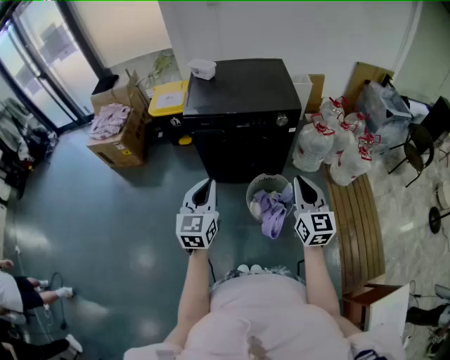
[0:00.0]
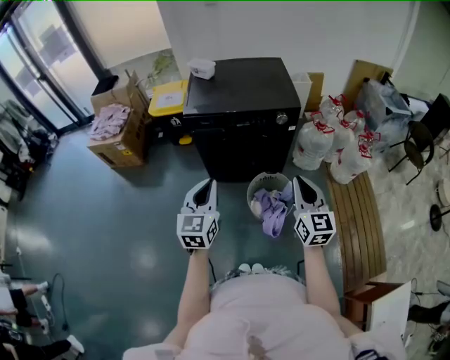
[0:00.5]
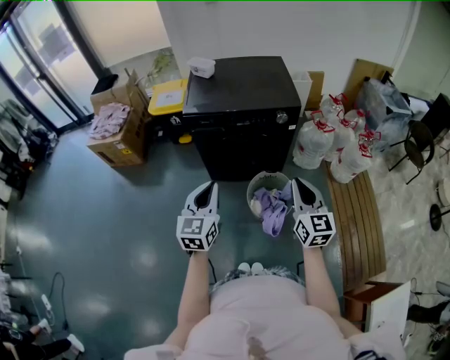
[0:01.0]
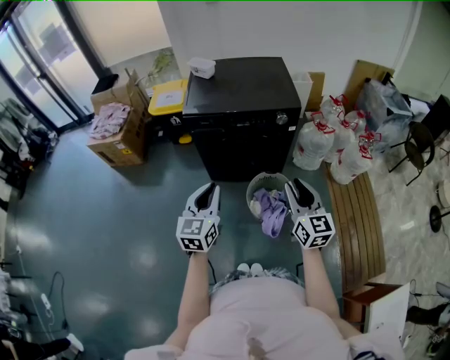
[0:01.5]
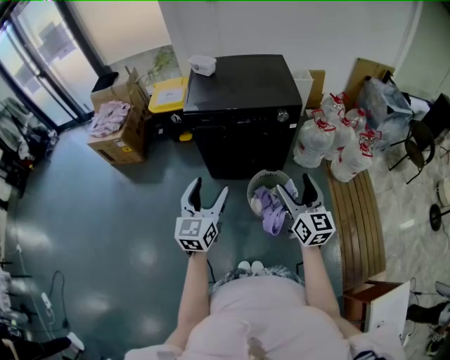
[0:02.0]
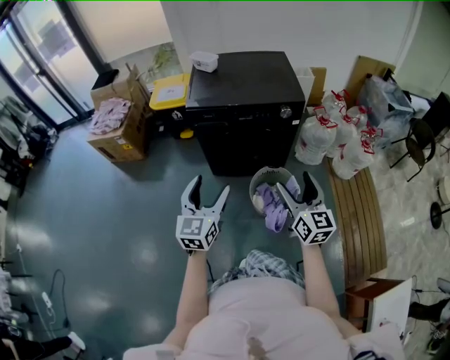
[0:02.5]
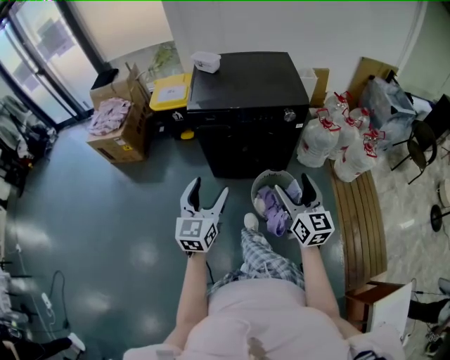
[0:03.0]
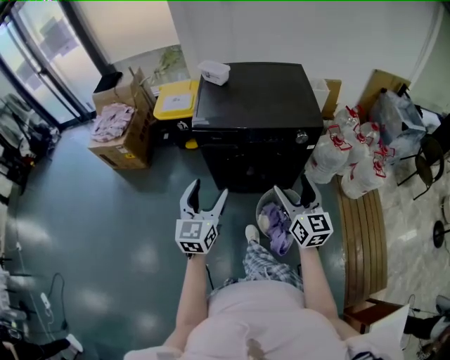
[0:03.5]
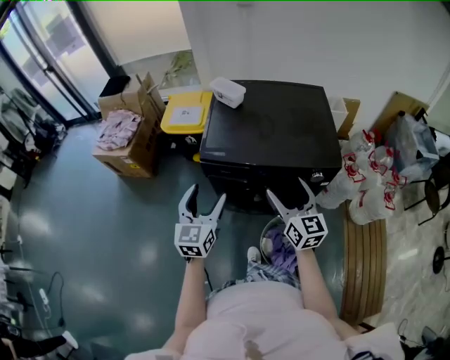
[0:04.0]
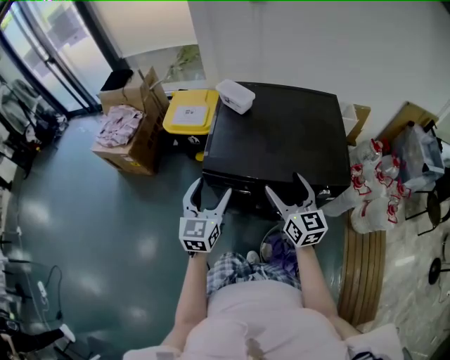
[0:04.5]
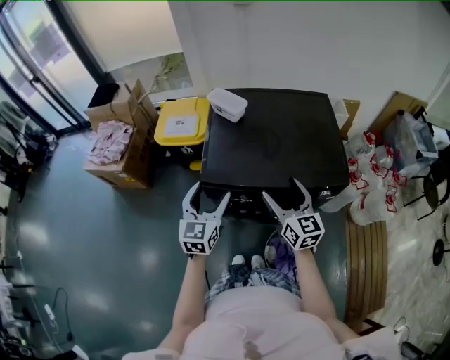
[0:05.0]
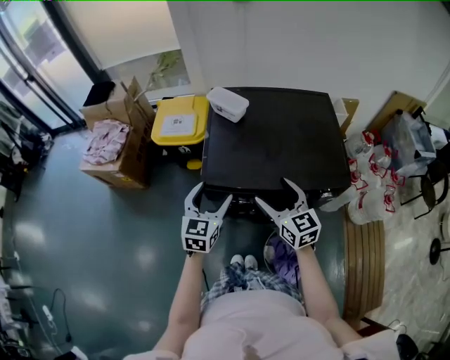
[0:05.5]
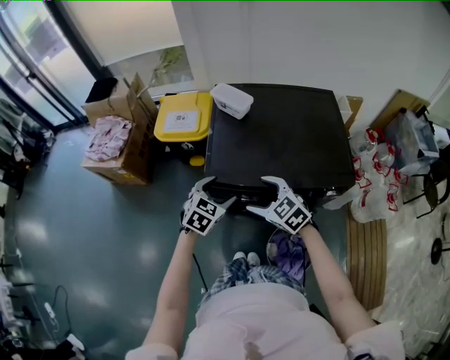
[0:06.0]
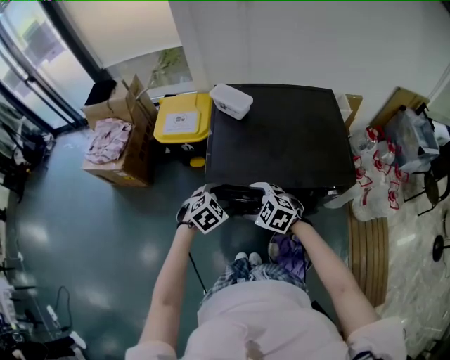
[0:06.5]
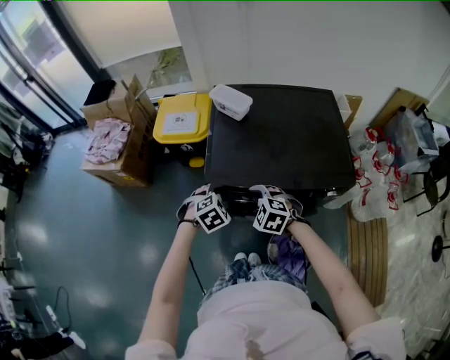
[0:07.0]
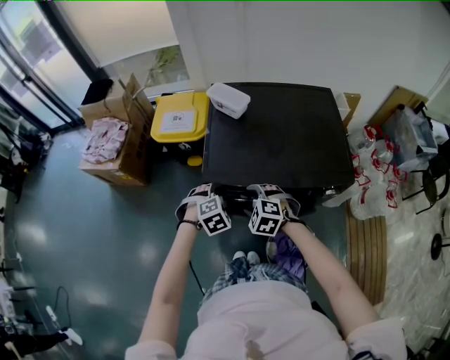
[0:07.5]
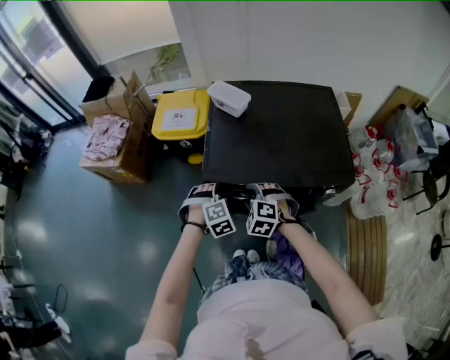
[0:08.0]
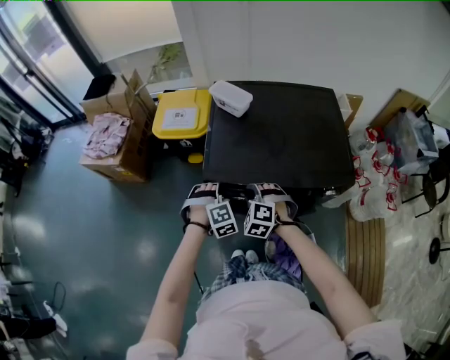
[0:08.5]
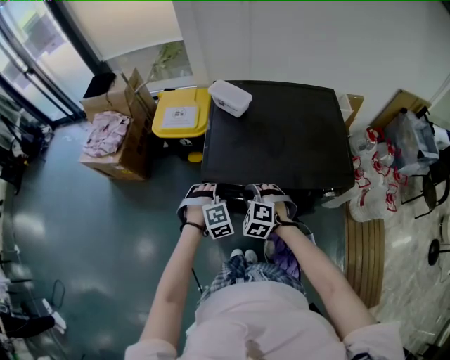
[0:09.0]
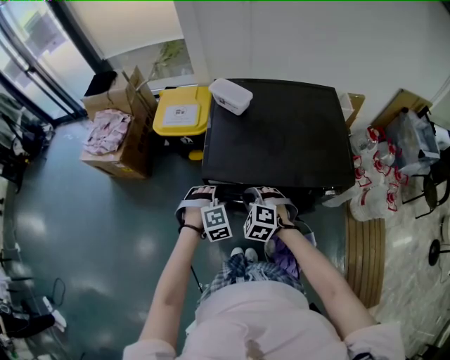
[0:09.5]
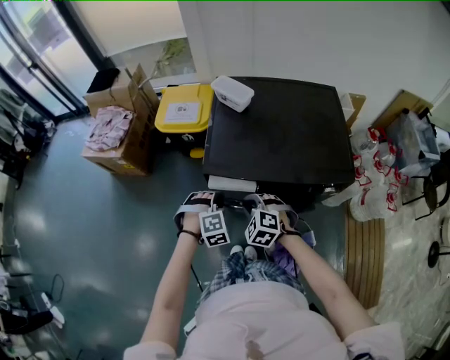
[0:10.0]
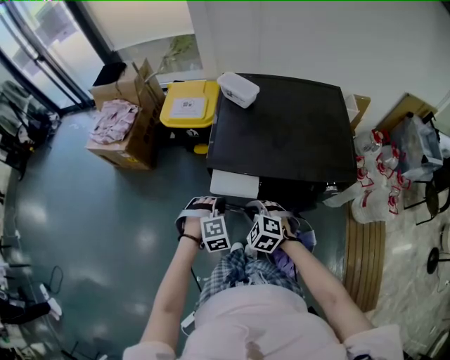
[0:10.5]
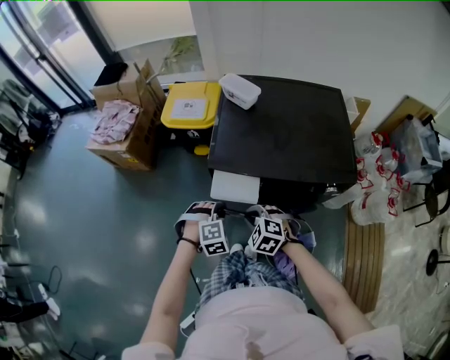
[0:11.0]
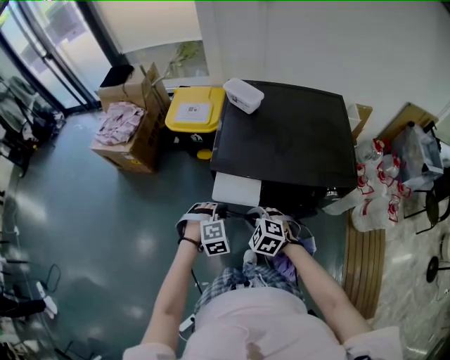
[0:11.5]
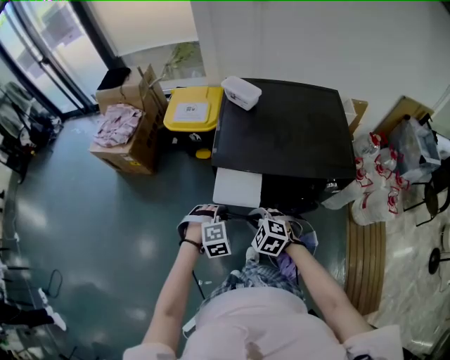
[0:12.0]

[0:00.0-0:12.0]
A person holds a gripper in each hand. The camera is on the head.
0:00.0 to 0:02.0: The left gripper opens its fingers. Meanwhile the right gripper opens its fingers.
0:02.0 to 0:04.0: The grippers both shift forward by some 30 cm.
0:04.0 to 0:06.0: The left gripper moves forward and downward, roughly 20 cm, and points its fingers roughly 30 degrees further downward. Meanwhile the right gripper heads to the left, forward and downward, covering approximately 20 cm, and tips its fingers downward by approximately 30 degrees.
0:06.0 to 0:08.0: The grippers both shift downward by some 5 cm. The right gripper turns by approximately 40 degrees, and closes its fingers, while the left gripper changes its angle by about 50 degrees, and closes up.
0:08.0 to 0:10.0: The left gripper ends up about 5 cm from where it was, and closes, while the right gripper goes approximately 5 cm backward.
0:10.0 to 0:12.0: Both grippers travel together backward, roughly 10 cm.

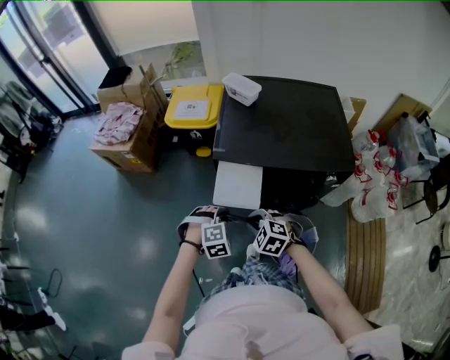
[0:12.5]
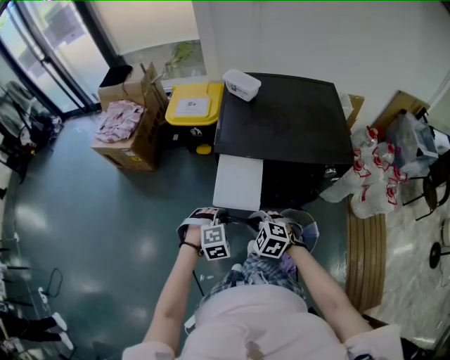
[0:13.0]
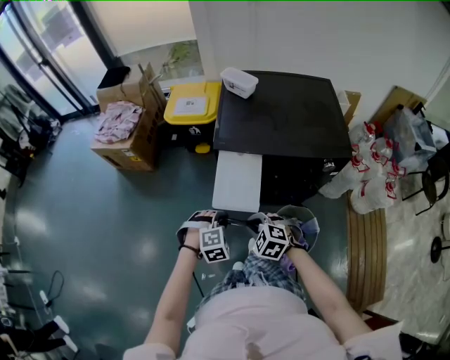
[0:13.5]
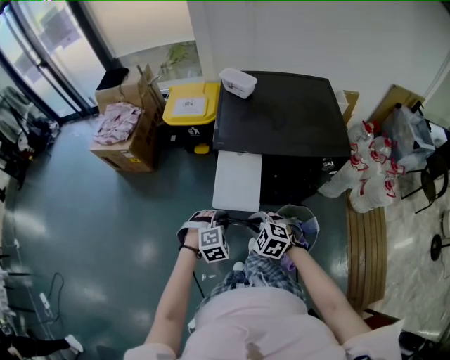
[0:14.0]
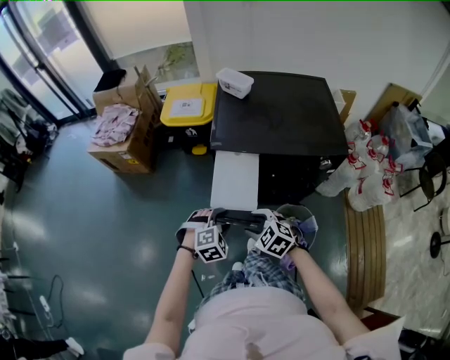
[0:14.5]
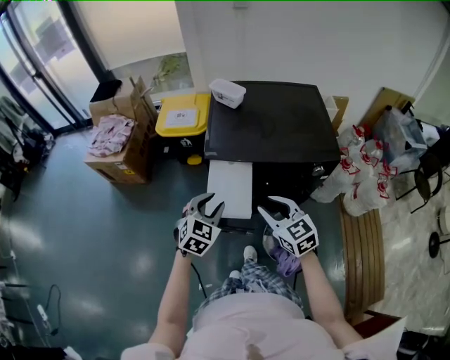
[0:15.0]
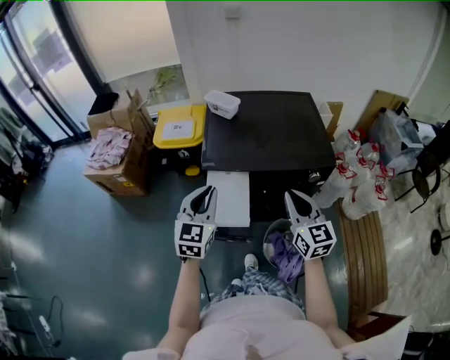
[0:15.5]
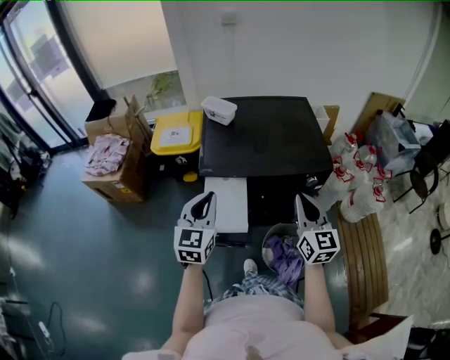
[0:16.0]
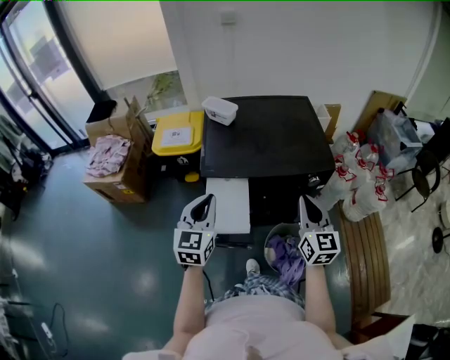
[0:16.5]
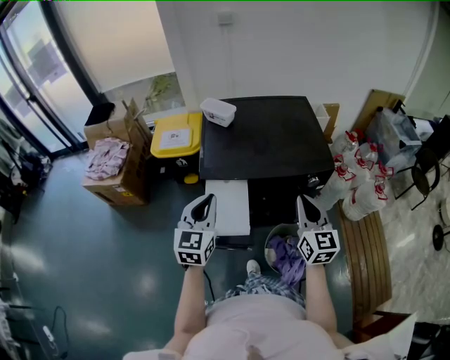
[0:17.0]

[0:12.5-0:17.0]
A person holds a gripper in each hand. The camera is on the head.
0:12.5 to 0:14.5: The grippers both shift backward by some 5 cm. The left gripper opens up. The right gripper opens its fingers.
0:14.5 to 0:17.0: The left gripper moves upward and forward, approximately 25 cm, angles its fingers upward, by about 50 degrees, and closes its fingers. Meanwhile the right gripper shifts roughly 30 cm upward, to the right and forward, tilts its fingers roughly 40 degrees upward, and closes up.

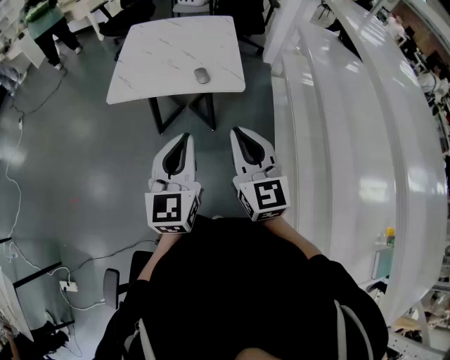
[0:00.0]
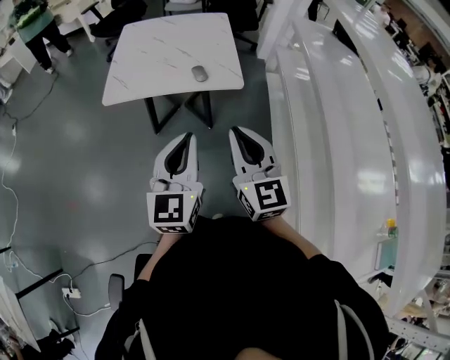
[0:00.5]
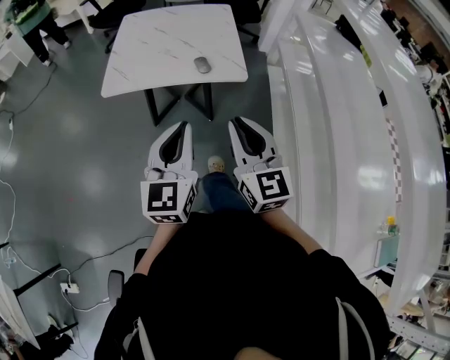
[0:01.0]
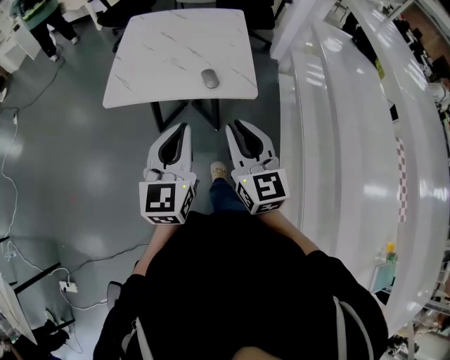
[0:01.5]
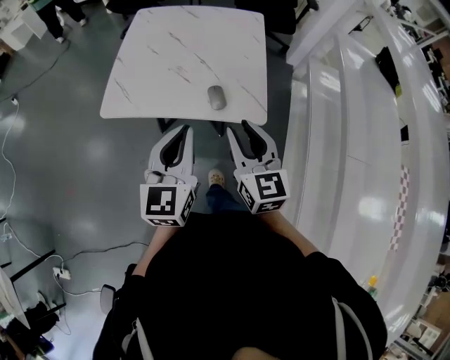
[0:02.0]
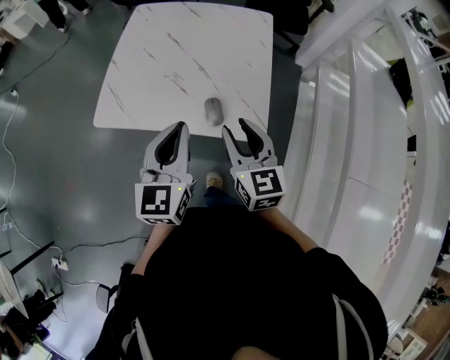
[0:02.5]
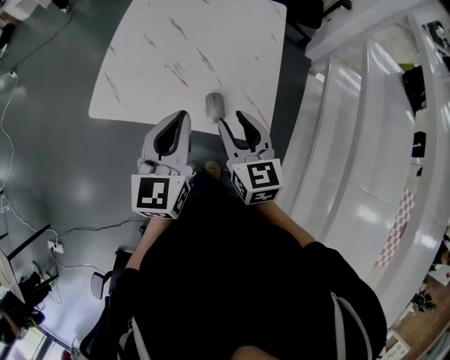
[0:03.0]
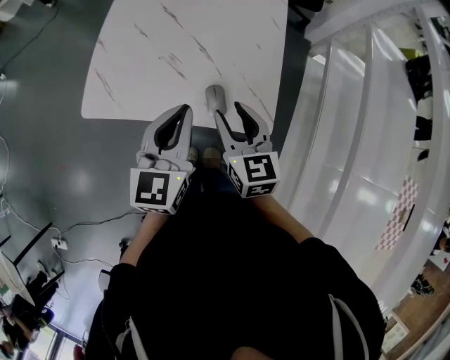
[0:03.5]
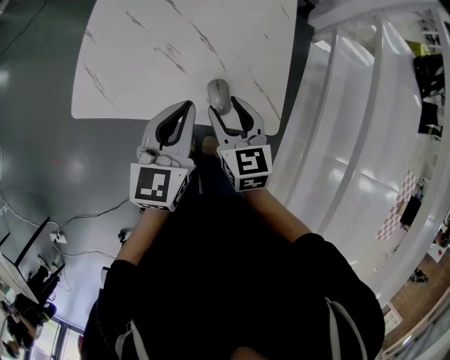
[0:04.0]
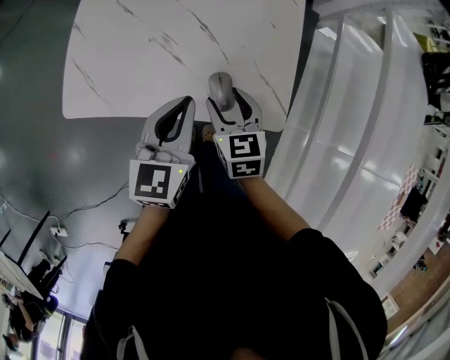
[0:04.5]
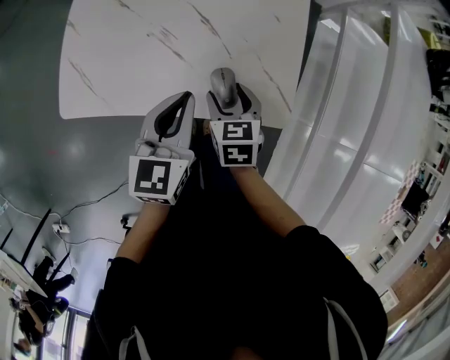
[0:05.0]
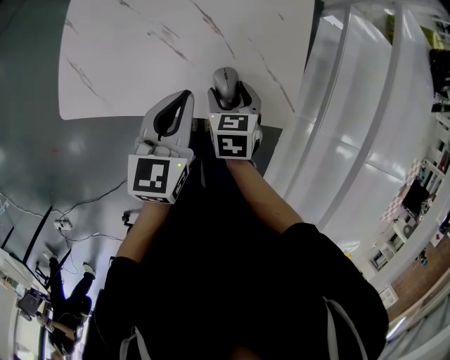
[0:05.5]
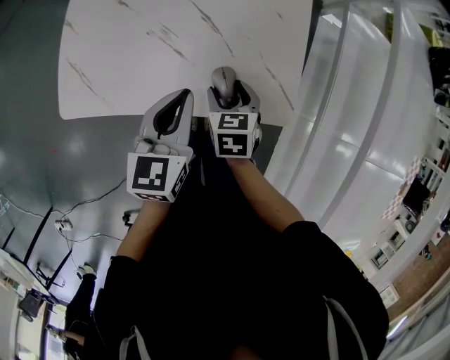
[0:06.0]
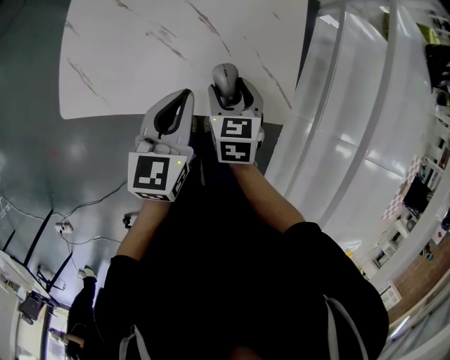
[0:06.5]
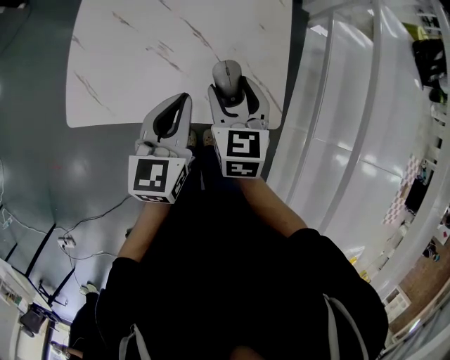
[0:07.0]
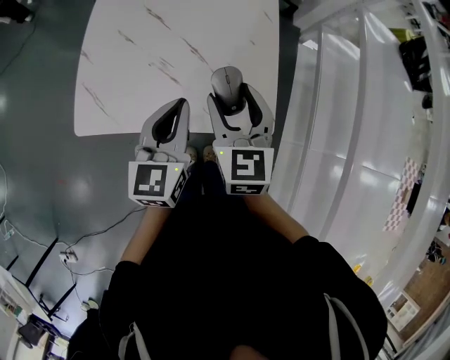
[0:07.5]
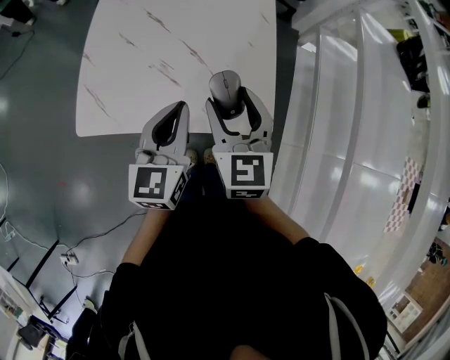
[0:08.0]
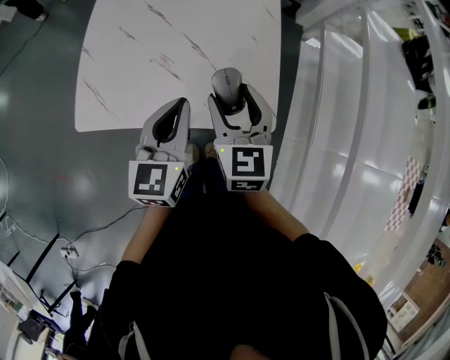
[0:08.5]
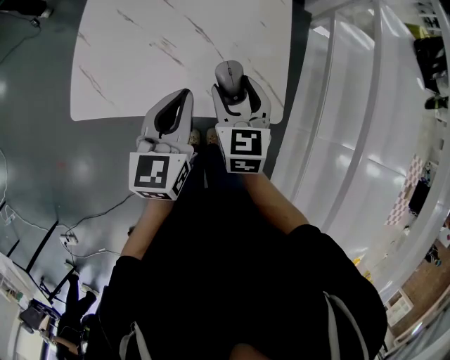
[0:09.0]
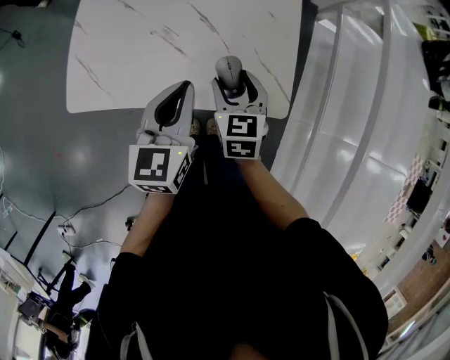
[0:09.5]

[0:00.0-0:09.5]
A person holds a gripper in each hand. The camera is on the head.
0:00.0 to 0:02.0: Both grippers move forward, some 25 cm.
0:02.0 to 0:04.0: Both grippers travel together forward and downward, approximately 20 cm.
0:04.0 to 0:05.5: The left gripper is displaced downward by about 5 cm, while the right gripper goes about 15 cm downward, and changes its angle by approximately 30 degrees.
0:05.5 to 0:07.5: The right gripper goes some 20 cm upward, and tilts its fingers approximately 30 degrees upward; the left gripper goes about 10 cm upward.
0:07.5 to 0:09.5: The left gripper shifts about 5 cm downward. Meanwhile the right gripper shifts roughly 15 cm downward.
